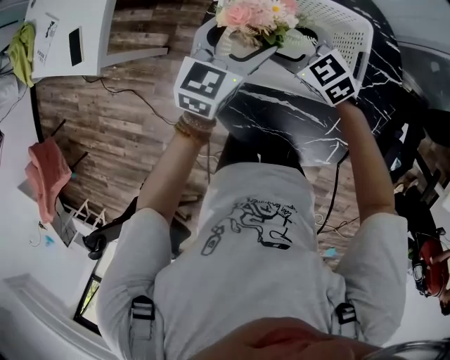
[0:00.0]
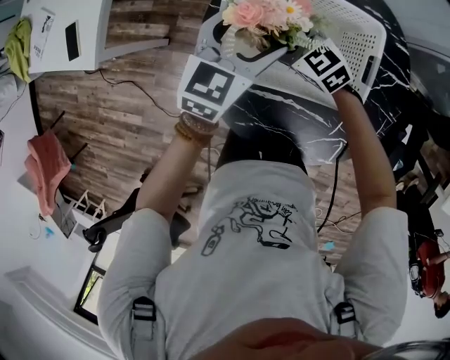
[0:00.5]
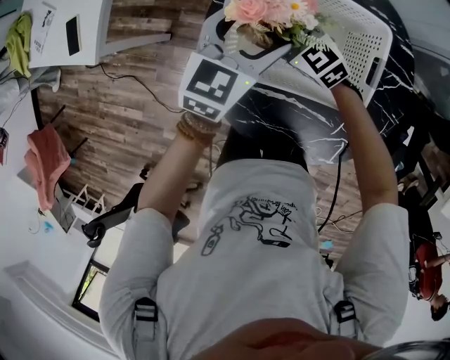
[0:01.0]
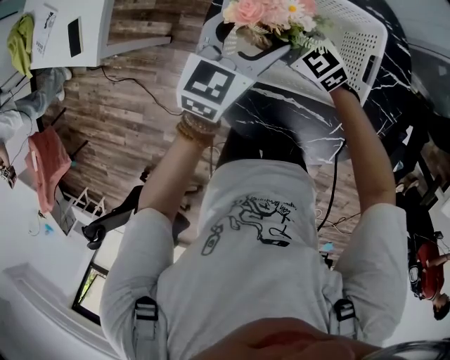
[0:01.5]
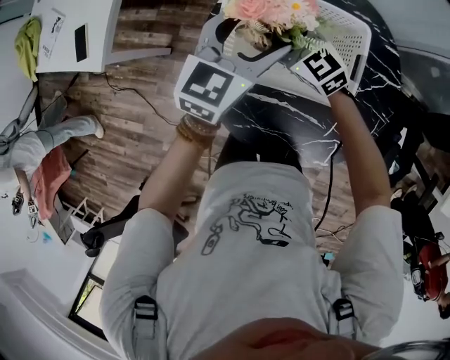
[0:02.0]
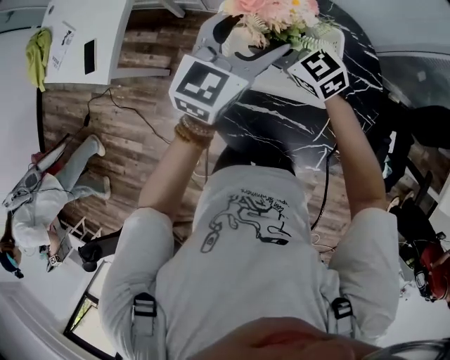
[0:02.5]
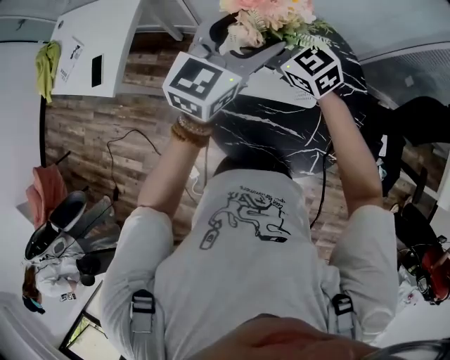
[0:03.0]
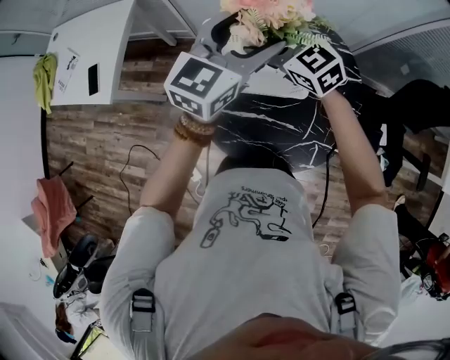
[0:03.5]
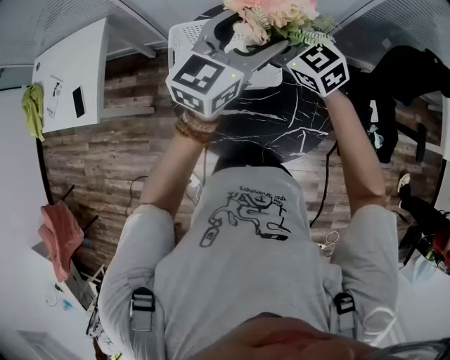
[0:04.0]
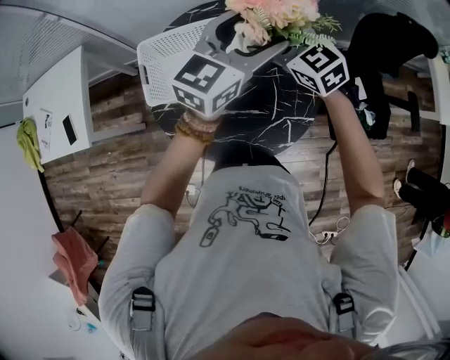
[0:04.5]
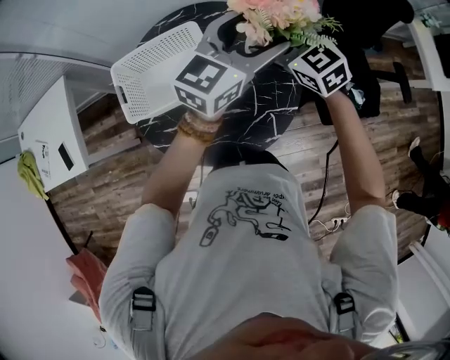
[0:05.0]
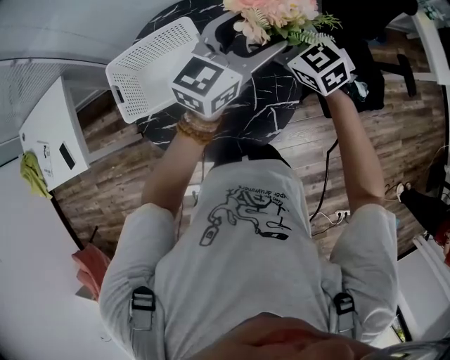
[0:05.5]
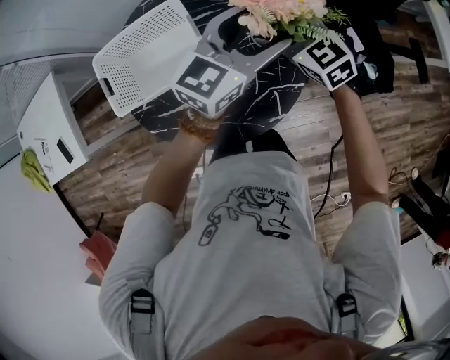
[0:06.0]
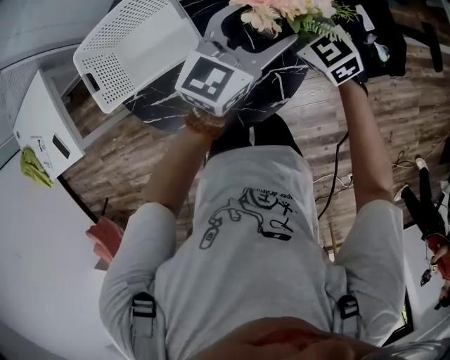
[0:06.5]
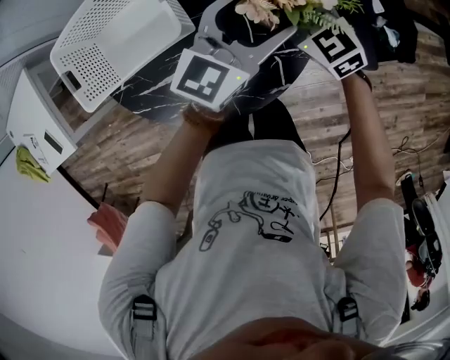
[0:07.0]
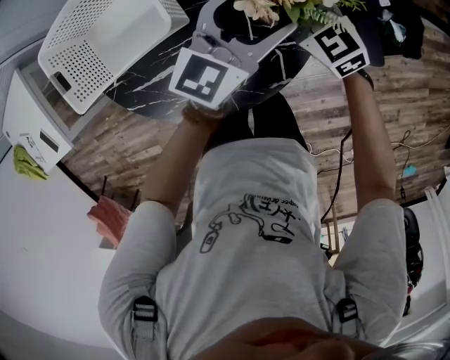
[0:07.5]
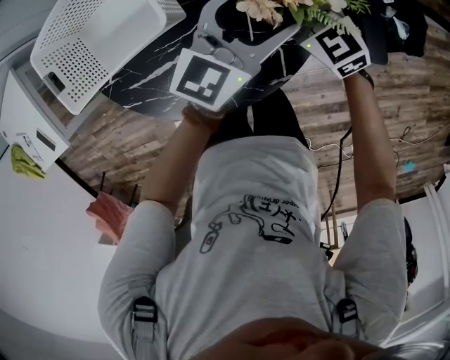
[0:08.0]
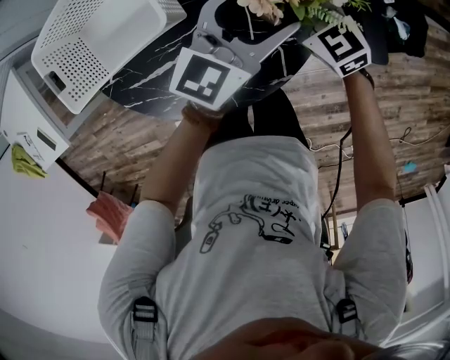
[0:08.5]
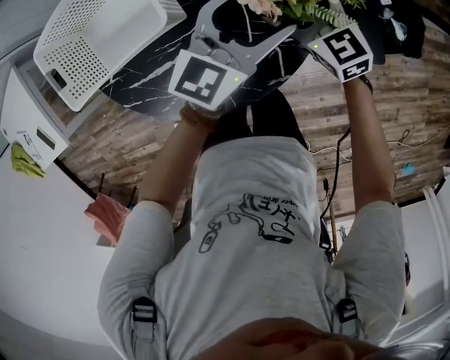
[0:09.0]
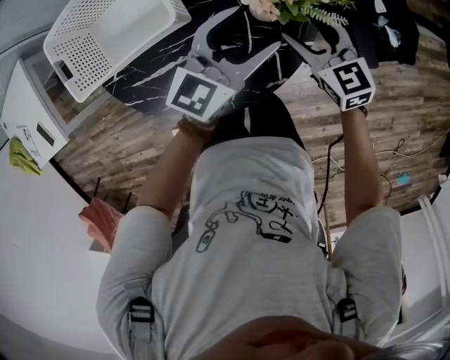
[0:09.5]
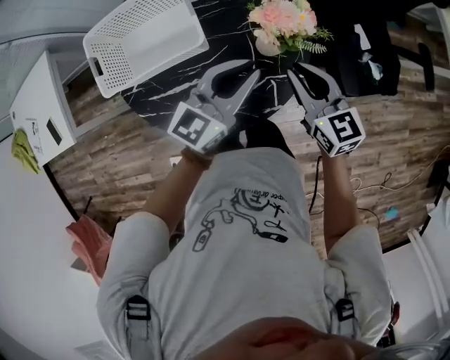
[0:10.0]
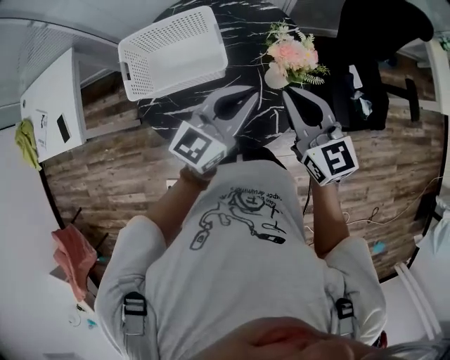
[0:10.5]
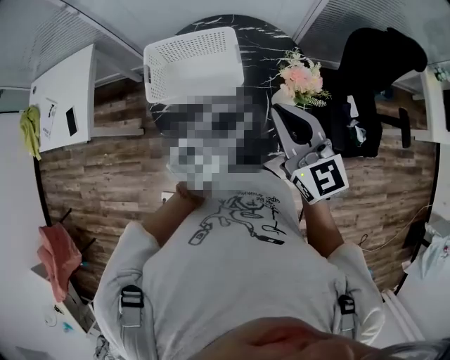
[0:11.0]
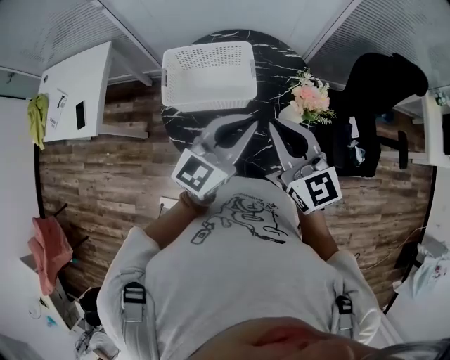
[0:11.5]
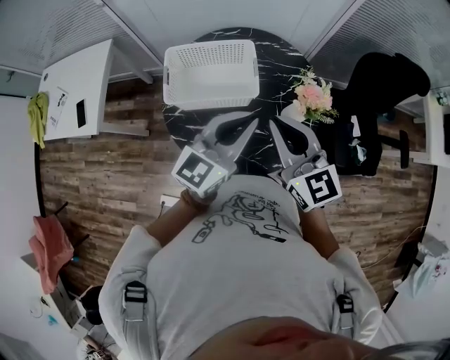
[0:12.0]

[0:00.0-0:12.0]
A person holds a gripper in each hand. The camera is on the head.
0.0 to 2.0 s: The right gripper shifts by some 5 cm; the left gripper shifts roughly 5 cm upward.
2.0 to 4.0 s: Both grippers travel together upward, to the right and backward, some 25 cm. The left gripper rotates approximately 20 degrees.
4.0 to 6.0 s: The left gripper shifts roughly 25 cm to the right and downward, and swivels some 20 degrees; the right gripper heads to the right, covering approximately 25 cm, and swivels approximately 20 degrees.
6.0 to 8.0 s: The two grippers go some 20 cm downward.
8.0 to 10.0 s: The left gripper shifts about 15 cm upward, backward and to the left, and closes, while the right gripper goes about 20 cm upward and backward, swivels approximately 20 degrees, and closes up.
10.0 to 12.0 s: Both grippers move upward and to the left, roughly 25 cm. The right gripper rotates approximately 20 degrees.

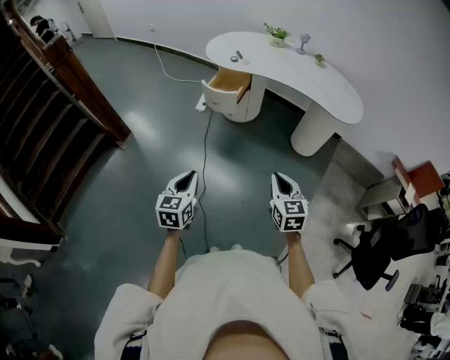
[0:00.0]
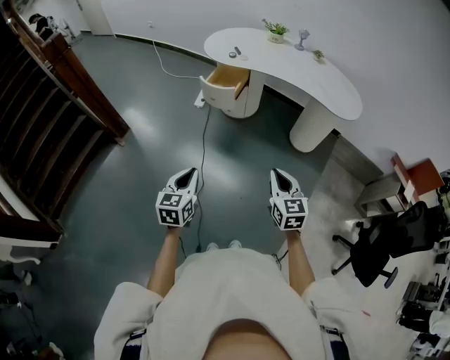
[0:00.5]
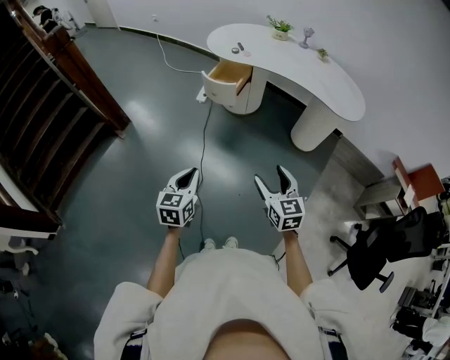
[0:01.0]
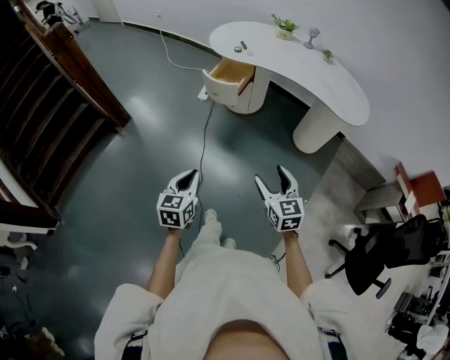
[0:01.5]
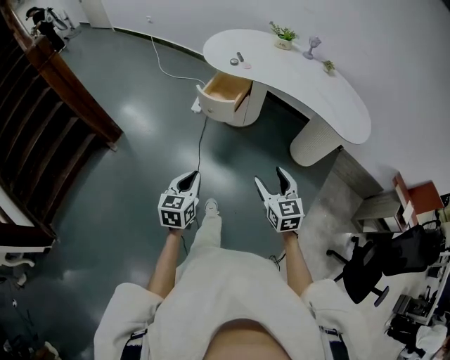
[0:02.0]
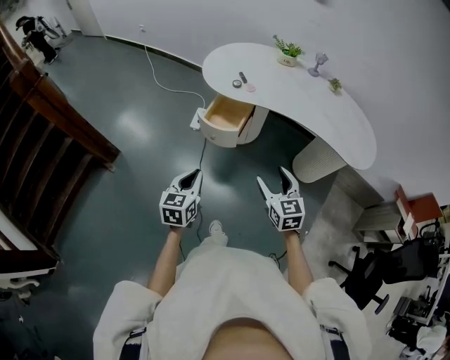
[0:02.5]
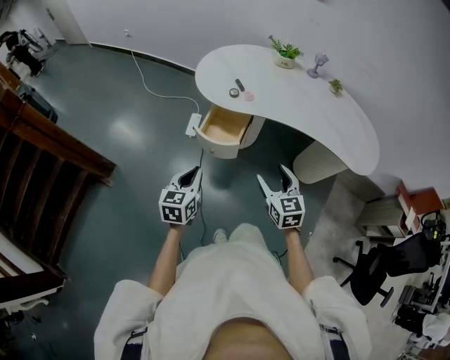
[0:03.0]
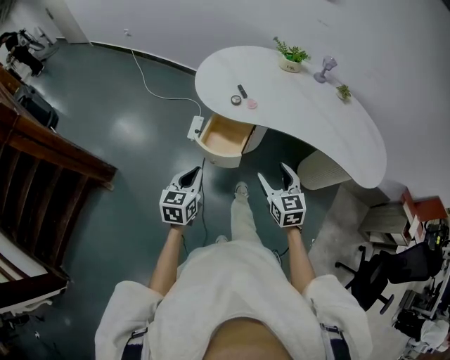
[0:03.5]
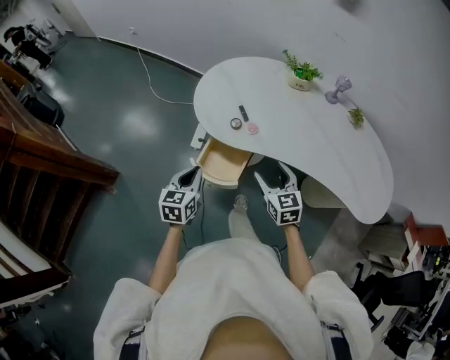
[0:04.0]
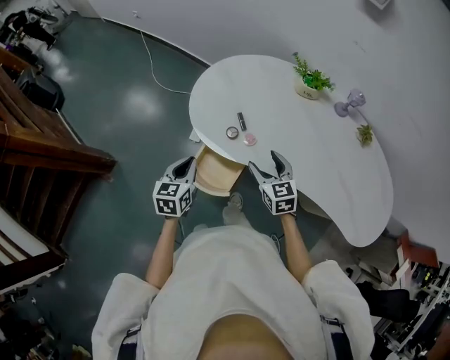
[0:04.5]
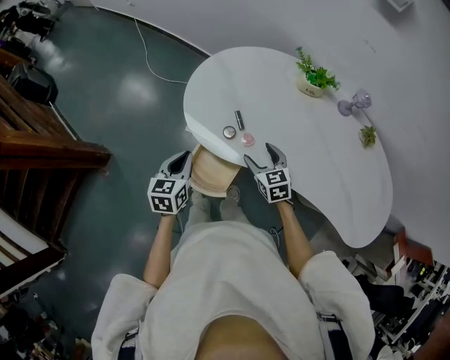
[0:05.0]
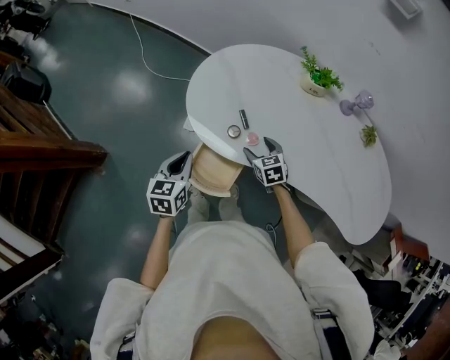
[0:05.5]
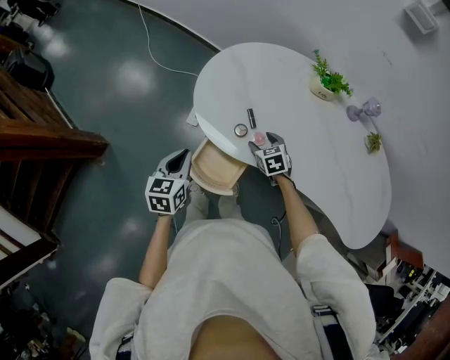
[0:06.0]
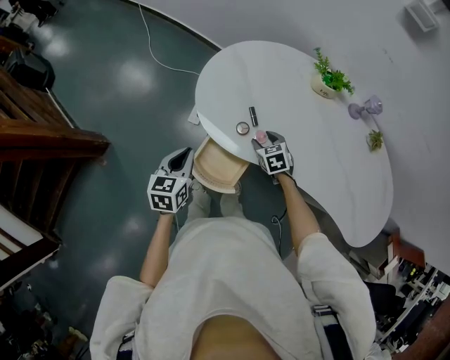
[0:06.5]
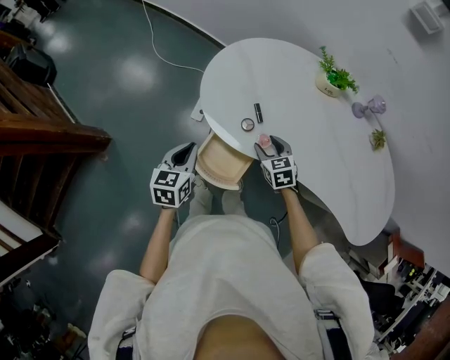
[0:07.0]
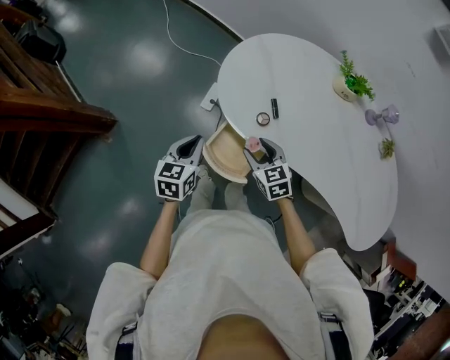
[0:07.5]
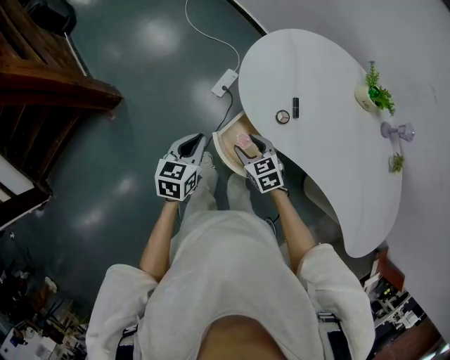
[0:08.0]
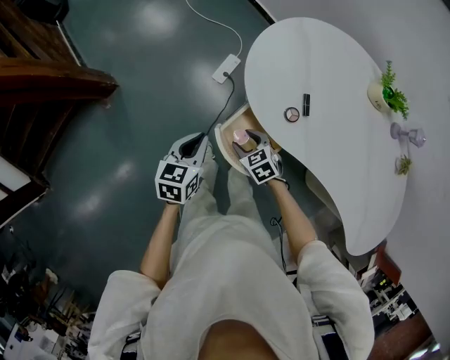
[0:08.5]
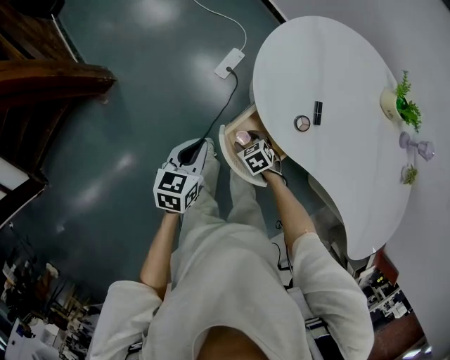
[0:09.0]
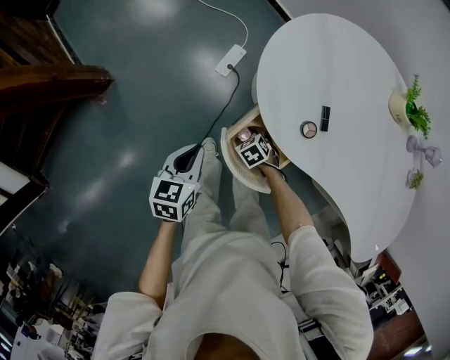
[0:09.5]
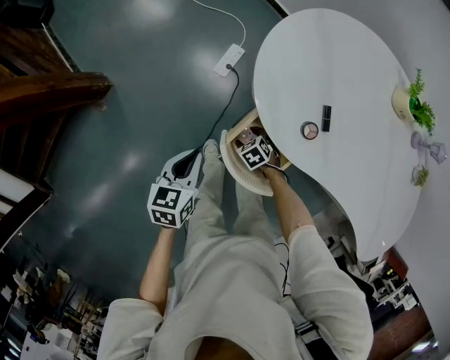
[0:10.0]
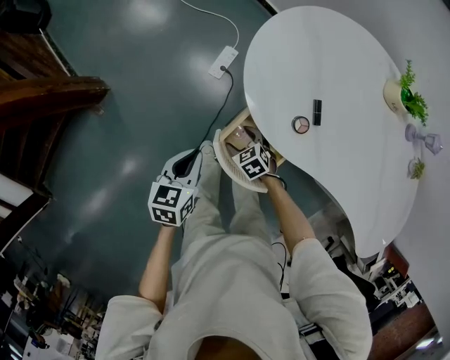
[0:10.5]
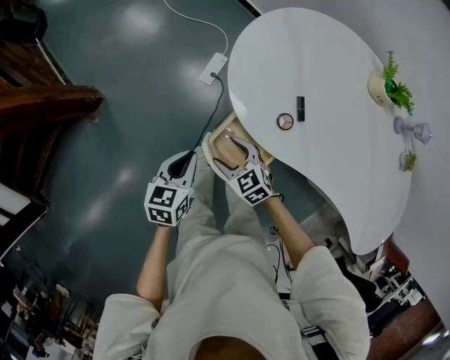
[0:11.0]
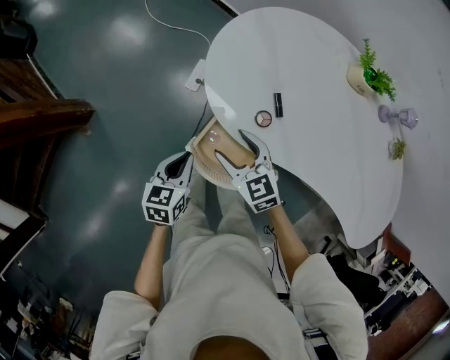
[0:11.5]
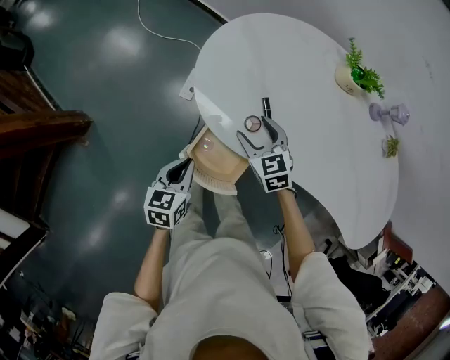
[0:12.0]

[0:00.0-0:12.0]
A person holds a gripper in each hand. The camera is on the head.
0.0 to 2.0 s: The two grippers go about 15 cm forward. The right gripper opens up.
2.0 to 4.0 s: The two grippers travel together, forward, roughly 50 cm.
4.0 to 6.0 s: The left gripper travels forward by roughly 15 cm. The right gripper moves forward and downward, approximately 30 cm, and turns by some 30 degrees.
6.0 to 8.0 s: The right gripper moves to the left, approximately 20 cm, and changes its angle by about 20 degrees, while the left gripper moves to the left, approximately 10 cm.
8.0 to 10.0 s: The left gripper shifts about 10 cm downward; the right gripper travels downward by about 25 cm, and turns by approximately 30 degrees.
10.0 to 12.0 s: The left gripper changes place by about 10 cm, while the right gripper travels upward by about 25 cm, and points its fingers some 30 degrees further upward.

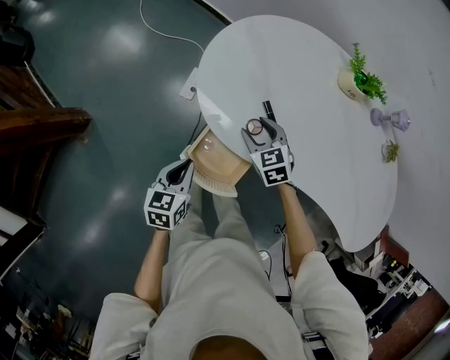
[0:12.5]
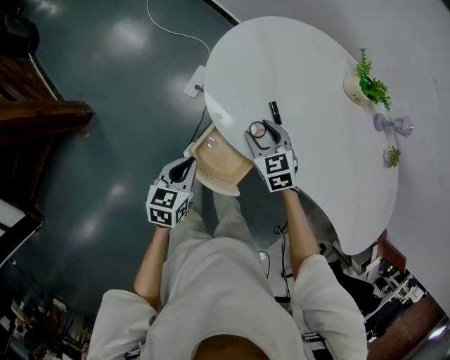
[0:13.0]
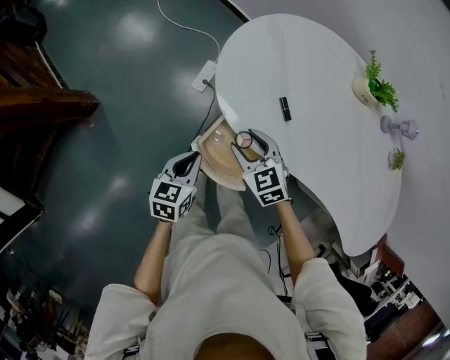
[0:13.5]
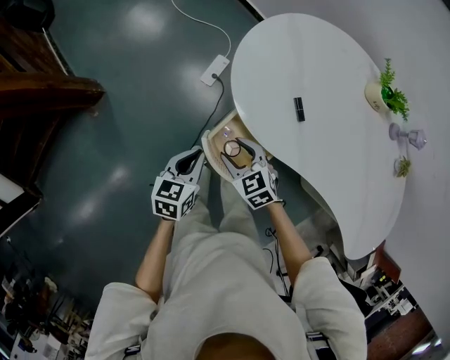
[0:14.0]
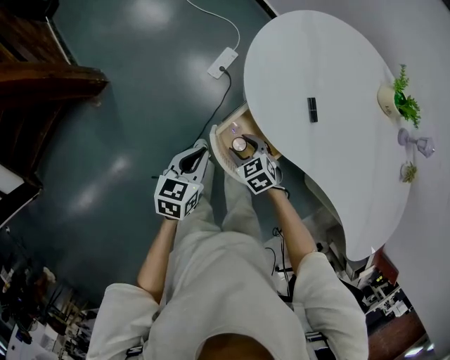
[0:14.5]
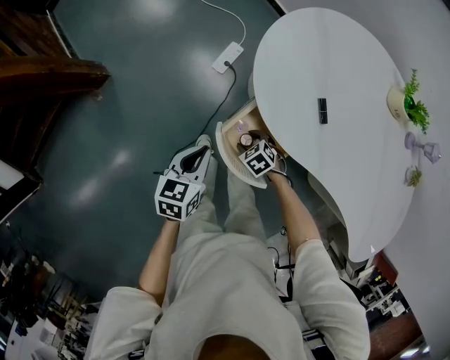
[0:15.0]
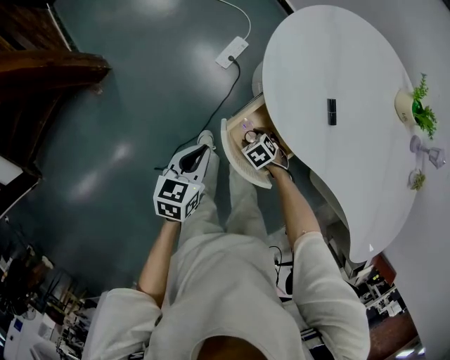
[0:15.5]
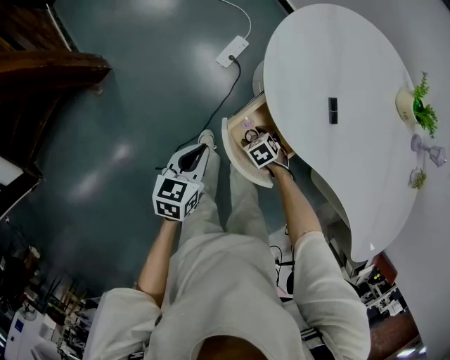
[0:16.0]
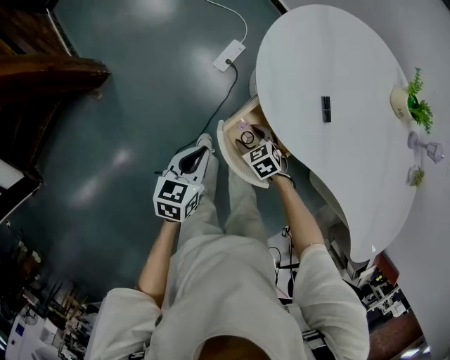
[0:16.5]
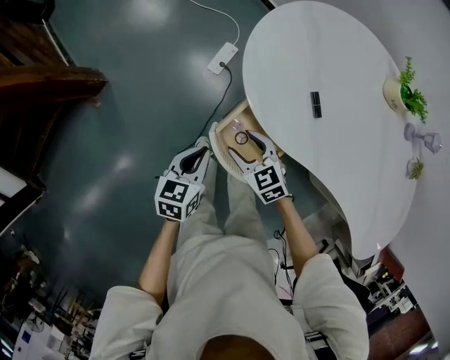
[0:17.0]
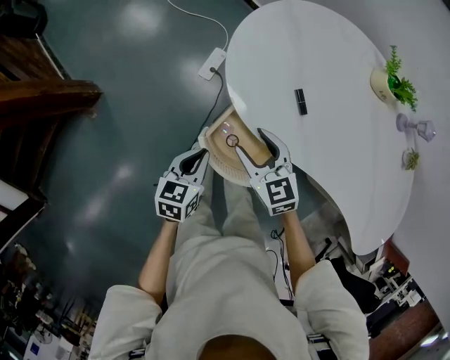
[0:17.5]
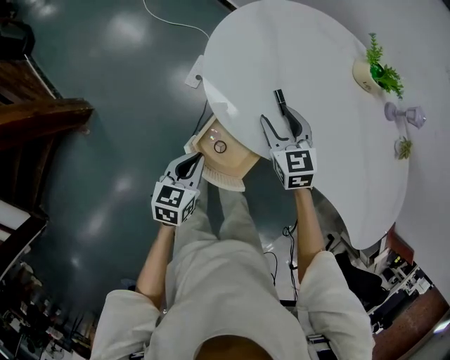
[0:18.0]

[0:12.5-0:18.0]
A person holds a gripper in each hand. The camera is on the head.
12.5 to 14.5 s: The right gripper shifts approximately 20 cm to the left, backward and downward, and swivels some 30 degrees. The left gripper travels to the left by about 5 cm.
14.5 to 16.0 s: The right gripper shifts roughly 15 cm downward.
16.0 to 18.0 s: The left gripper moves some 10 cm; the right gripper is displaced upward by about 30 cm, and tips its fingers upward by about 30 degrees.
